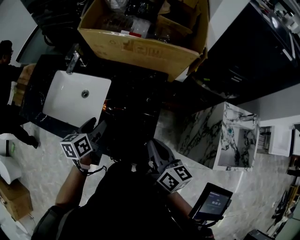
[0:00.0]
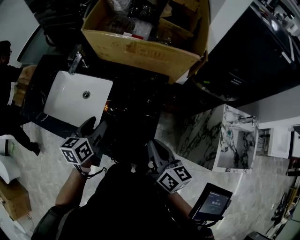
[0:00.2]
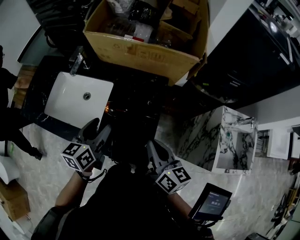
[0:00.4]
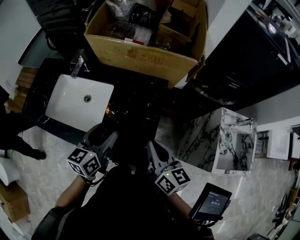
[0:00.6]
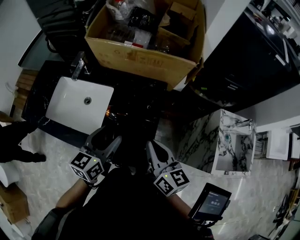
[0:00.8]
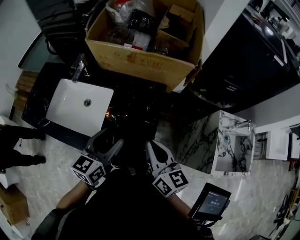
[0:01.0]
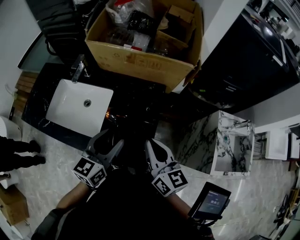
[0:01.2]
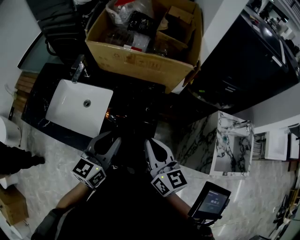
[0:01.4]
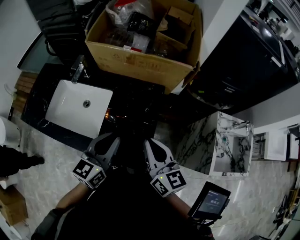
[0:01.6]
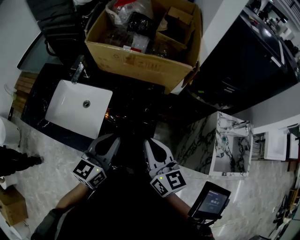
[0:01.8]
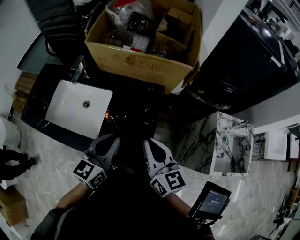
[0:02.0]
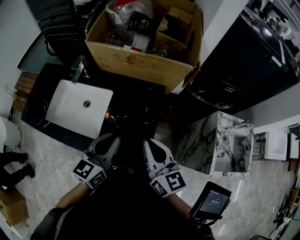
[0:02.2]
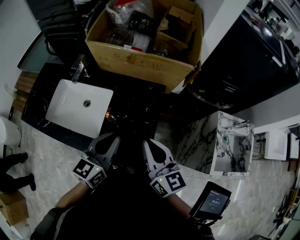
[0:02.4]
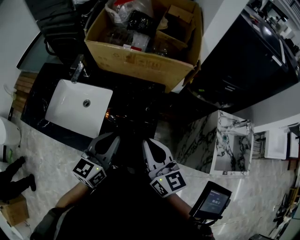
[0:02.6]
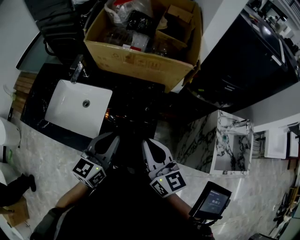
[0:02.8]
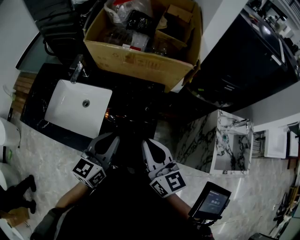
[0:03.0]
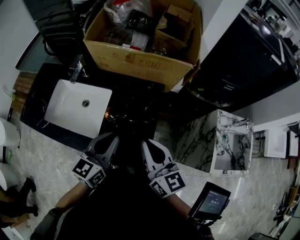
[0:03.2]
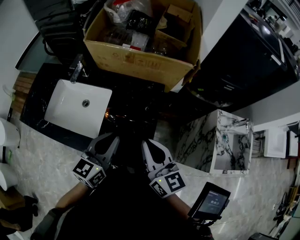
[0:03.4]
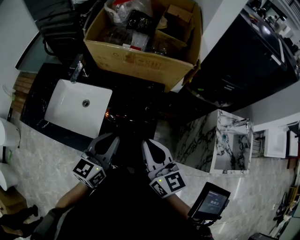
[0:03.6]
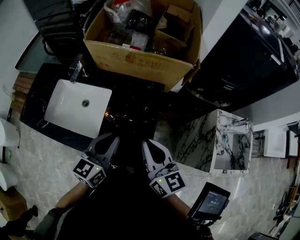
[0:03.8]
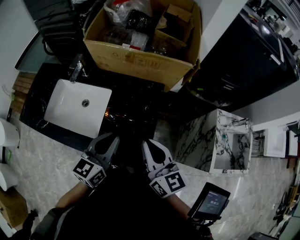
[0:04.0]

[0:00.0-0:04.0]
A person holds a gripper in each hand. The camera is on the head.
0:00.0 to 0:01.4: The right gripper moves upward, roughly 10 cm, and turns by about 20 degrees. Meanwhile the left gripper heads upward and to the right, covering about 15 cm, turns by approximately 30 degrees, and closes its fingers.
0:01.4 to 0:02.6: There are only small adjustments of the grippers.
0:02.6 to 0:04.0: The two grippers keep their place.

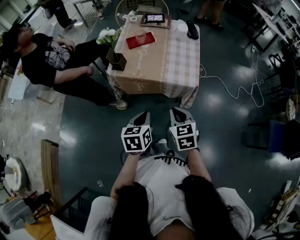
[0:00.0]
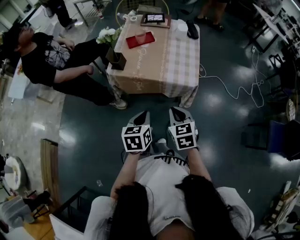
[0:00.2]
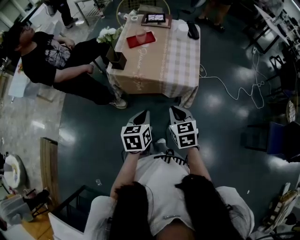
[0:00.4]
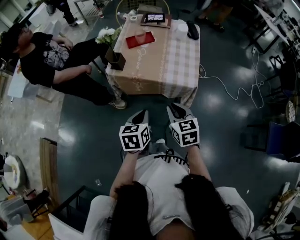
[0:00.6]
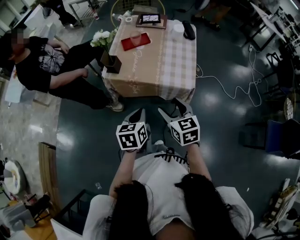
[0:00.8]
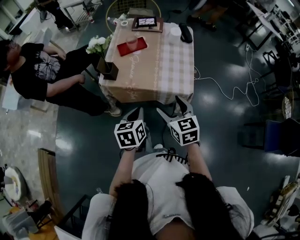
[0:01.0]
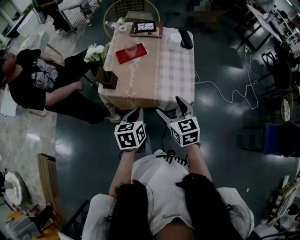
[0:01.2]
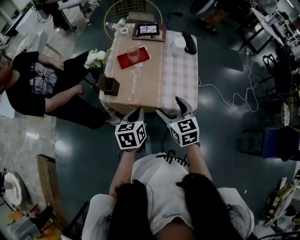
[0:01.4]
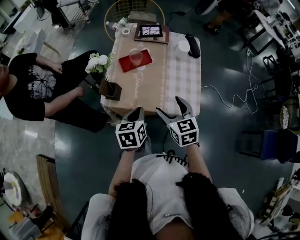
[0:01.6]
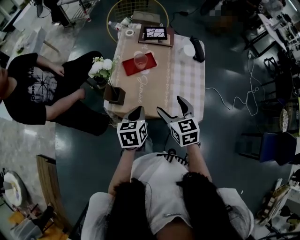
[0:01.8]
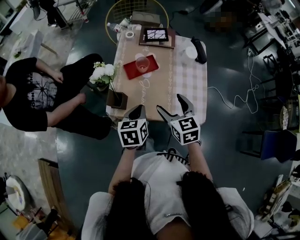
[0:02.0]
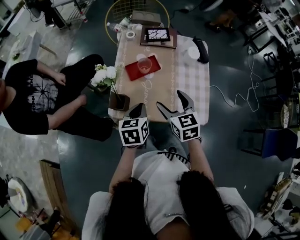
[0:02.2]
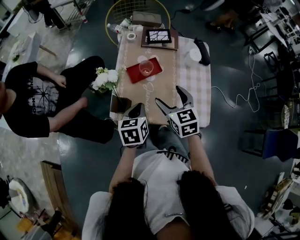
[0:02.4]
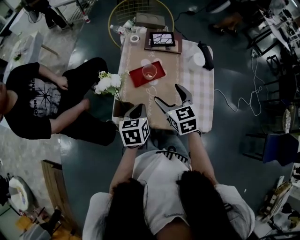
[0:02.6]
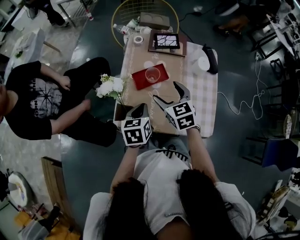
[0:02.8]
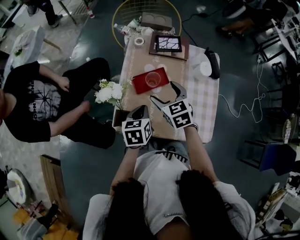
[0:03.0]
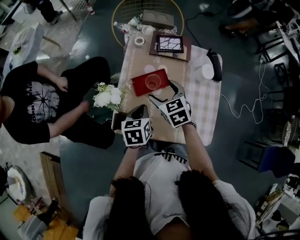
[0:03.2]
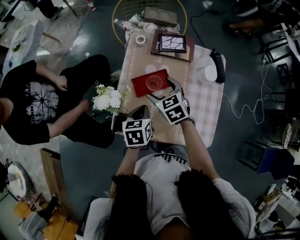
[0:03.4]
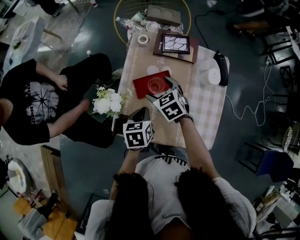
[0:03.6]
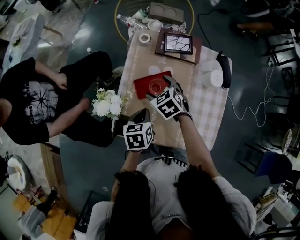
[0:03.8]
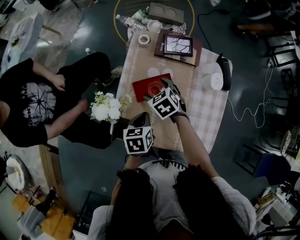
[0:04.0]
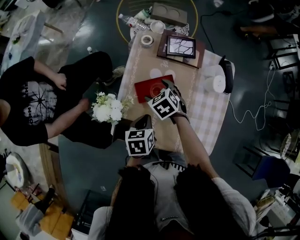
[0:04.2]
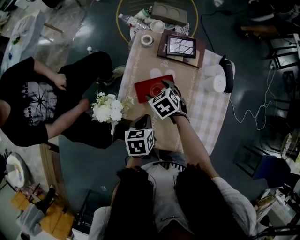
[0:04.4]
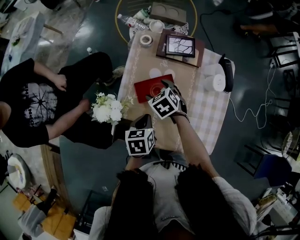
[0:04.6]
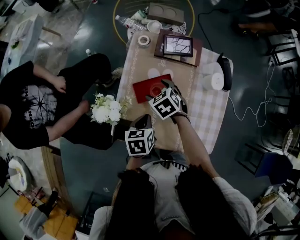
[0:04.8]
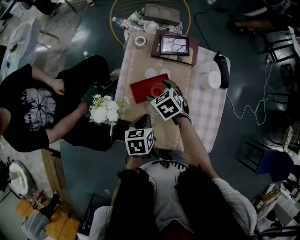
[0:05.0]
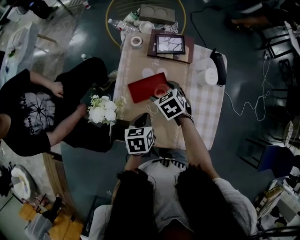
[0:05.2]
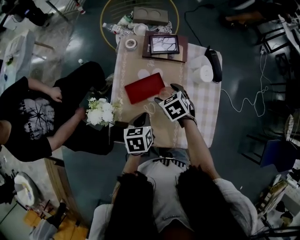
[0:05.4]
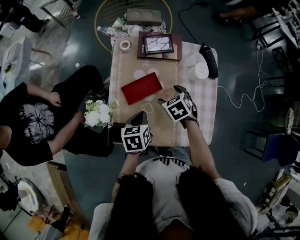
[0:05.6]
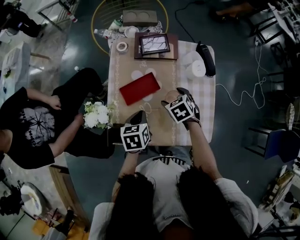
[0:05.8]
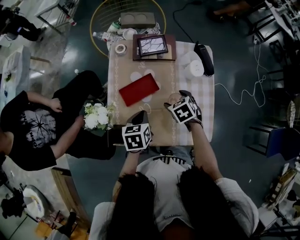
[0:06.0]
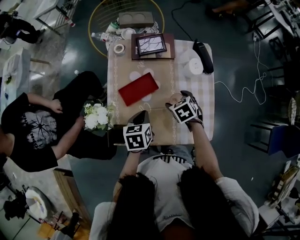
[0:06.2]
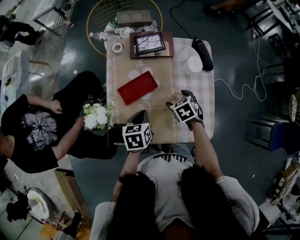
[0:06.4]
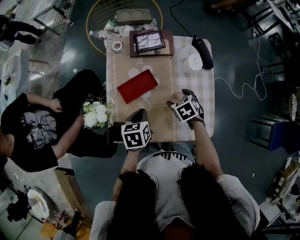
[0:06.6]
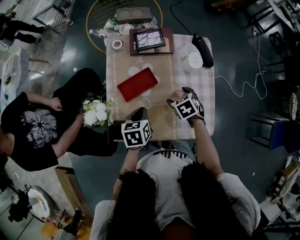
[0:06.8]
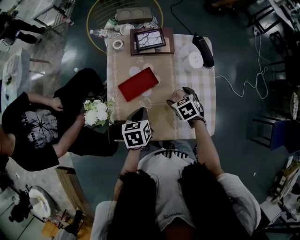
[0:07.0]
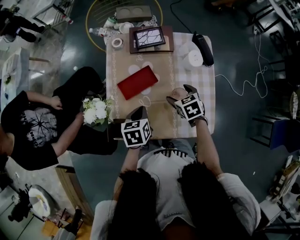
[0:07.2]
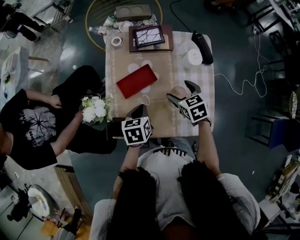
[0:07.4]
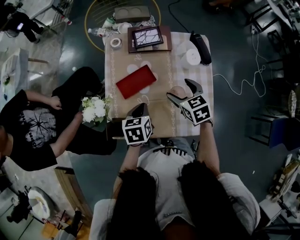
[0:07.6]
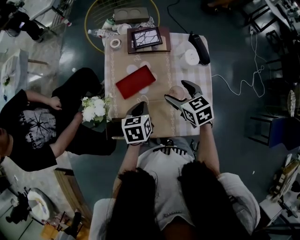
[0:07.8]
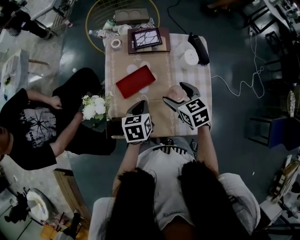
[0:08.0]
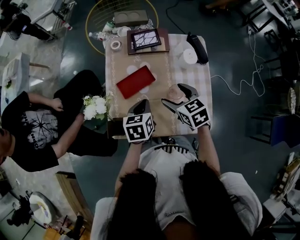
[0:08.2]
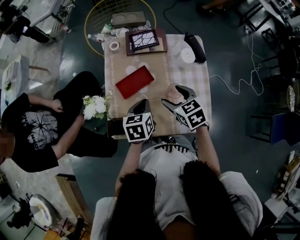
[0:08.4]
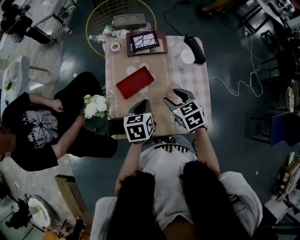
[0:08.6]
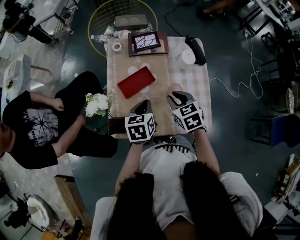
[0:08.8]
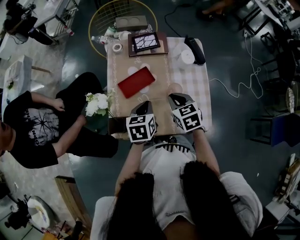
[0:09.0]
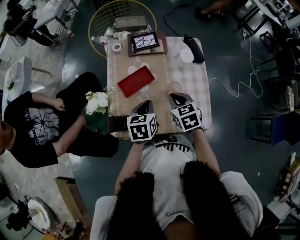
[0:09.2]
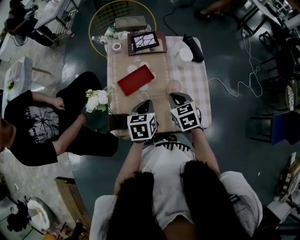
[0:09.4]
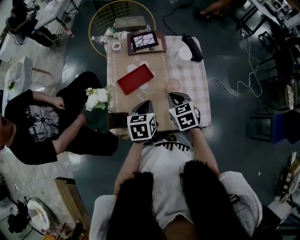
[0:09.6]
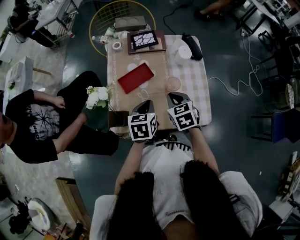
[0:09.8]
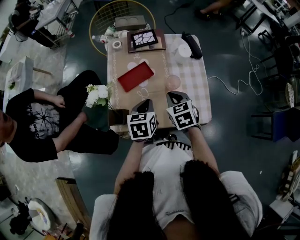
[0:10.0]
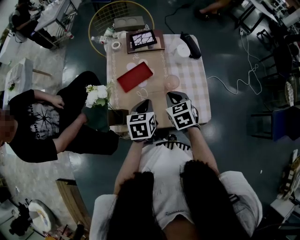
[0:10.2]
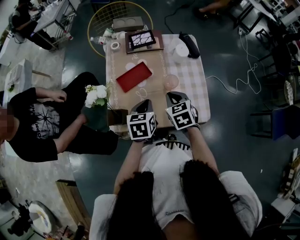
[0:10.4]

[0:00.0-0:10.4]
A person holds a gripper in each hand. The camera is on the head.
0:00.0 to 0:01.4: The grippers both shift forward by about 20 cm. The right gripper opens its fingers.
0:01.4 to 0:03.0: The left gripper travels forward by about 20 cm; the right gripper moves forward and to the left, about 30 cm.
0:03.0 to 0:04.4: The left gripper is displaced downward by approximately 5 cm, while the right gripper is displaced downward and forward by roughly 15 cm, and swivels roughly 30 degrees.
0:04.4 to 0:06.0: The left gripper moves some 5 cm; the right gripper goes about 20 cm to the right and backward.
0:06.0 to 0:07.4: The grippers make only small movements.
0:07.4 to 0:09.0: The right gripper goes approximately 10 cm backward and upward, and closes up. The left gripper goes roughly 5 cm upward.
0:09.0 to 0:10.4: There are only small adjustments of the grippers.

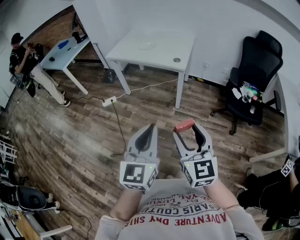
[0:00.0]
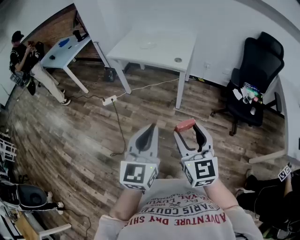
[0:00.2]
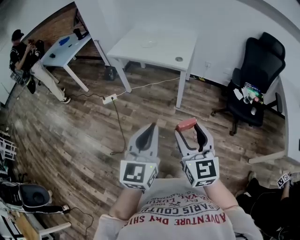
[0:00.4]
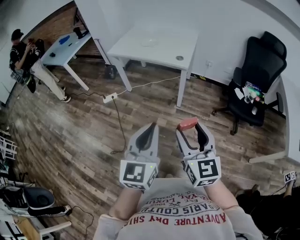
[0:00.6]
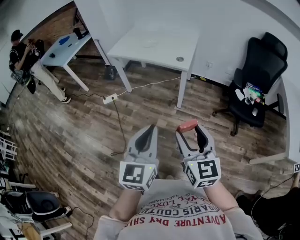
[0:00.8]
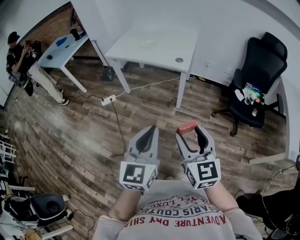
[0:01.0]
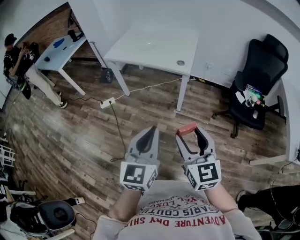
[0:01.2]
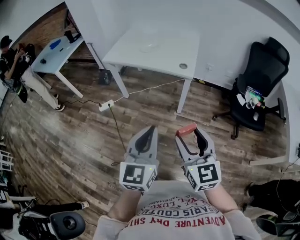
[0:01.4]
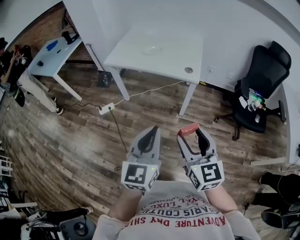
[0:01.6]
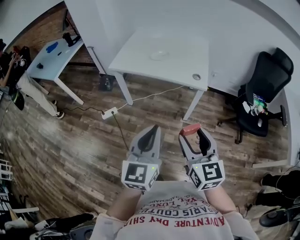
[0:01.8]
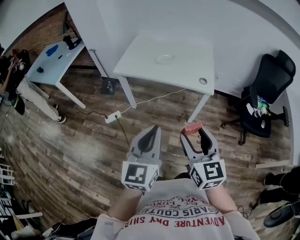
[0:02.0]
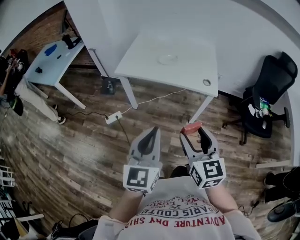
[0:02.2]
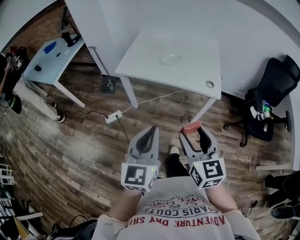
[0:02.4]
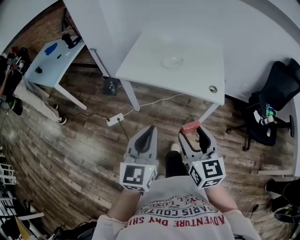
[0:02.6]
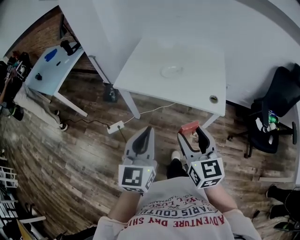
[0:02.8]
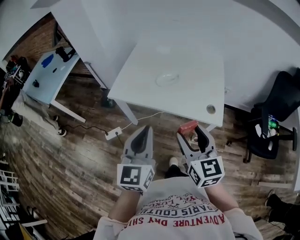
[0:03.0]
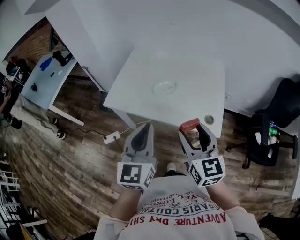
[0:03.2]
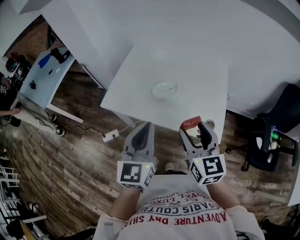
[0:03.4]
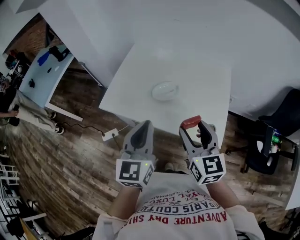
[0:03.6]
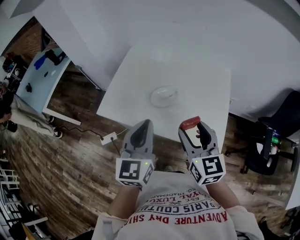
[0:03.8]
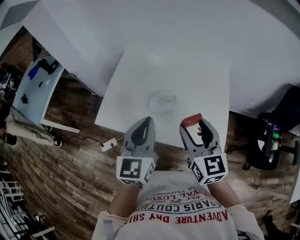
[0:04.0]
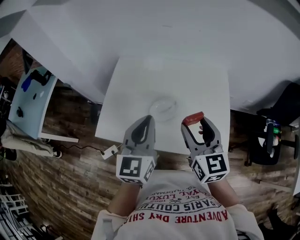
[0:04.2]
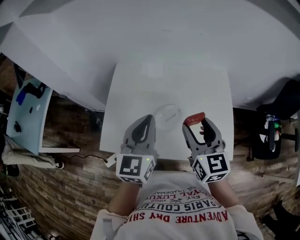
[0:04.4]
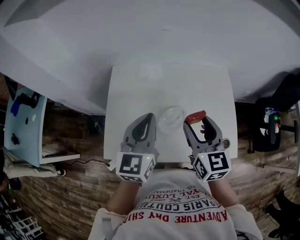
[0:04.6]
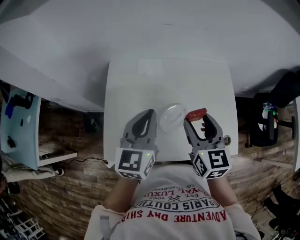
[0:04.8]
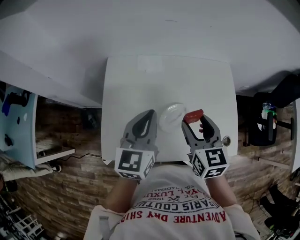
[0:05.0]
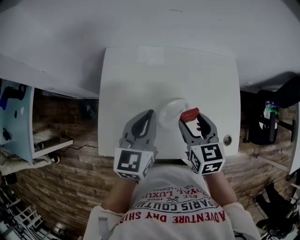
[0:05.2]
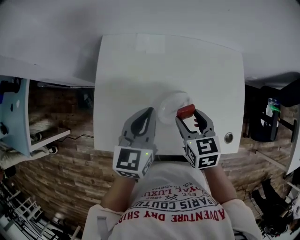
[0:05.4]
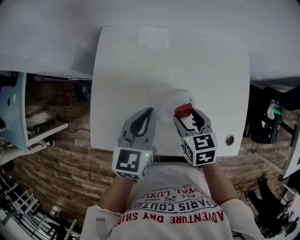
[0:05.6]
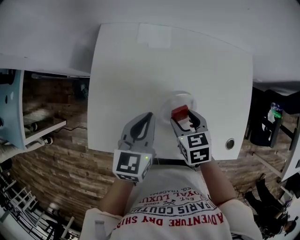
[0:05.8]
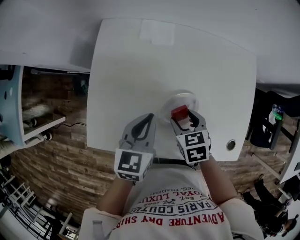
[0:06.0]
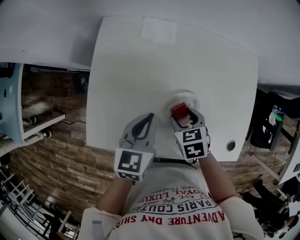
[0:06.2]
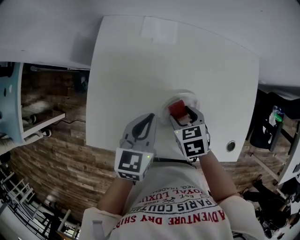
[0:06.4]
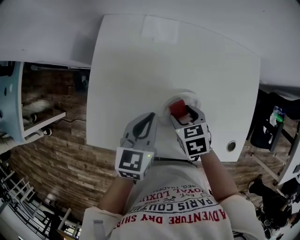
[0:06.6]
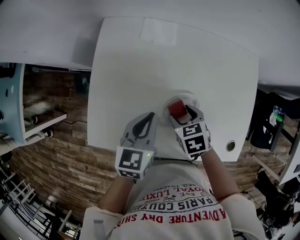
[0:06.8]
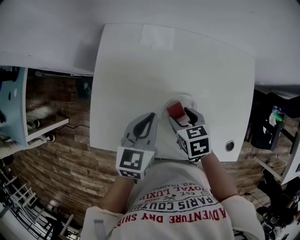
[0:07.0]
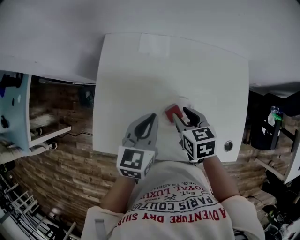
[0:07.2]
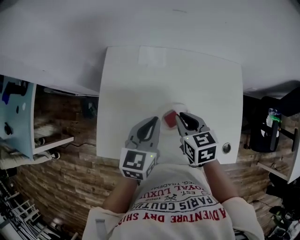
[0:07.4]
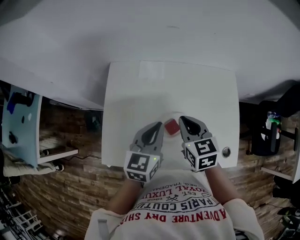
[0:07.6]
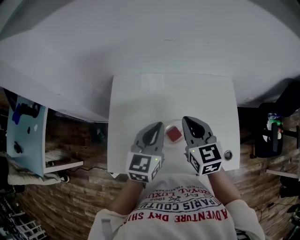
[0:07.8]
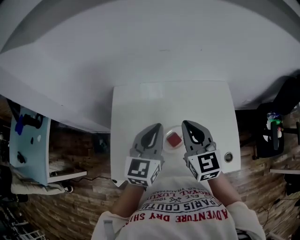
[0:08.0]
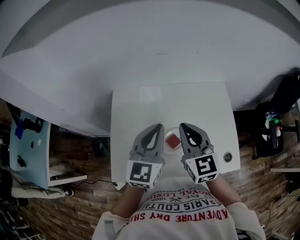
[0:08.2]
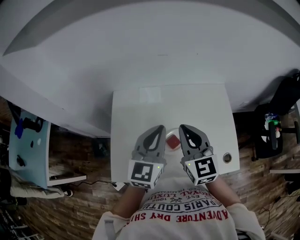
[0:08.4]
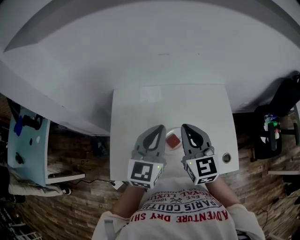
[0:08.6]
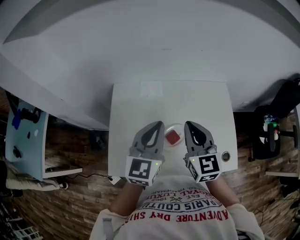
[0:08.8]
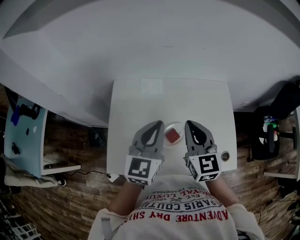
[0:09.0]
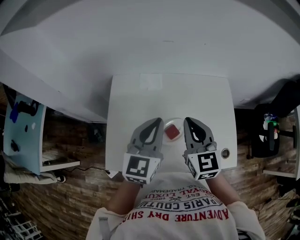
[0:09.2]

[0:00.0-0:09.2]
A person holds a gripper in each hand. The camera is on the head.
0:00.0 to 0:01.6: The two grippers go roughly 20 cm forward and to the left.
0:01.6 to 0:03.0: Both grippers move forward, approximately 35 cm.
0:03.0 to 0:04.6: The grippers both shift forward by some 40 cm.
0:04.6 to 0:06.2: Both grippers travel together downward, some 25 cm. The right gripper tilts its fingers roughly 40 degrees downward. The left gripper changes its angle by roughly 30 degrees.
0:06.2 to 0:07.6: The right gripper moves upward, approximately 15 cm, changes its angle by about 30 degrees, and closes up. Meanwhile the left gripper shifts approximately 10 cm upward.
0:07.6 to 0:09.2: The two grippers go some 10 cm upward. The right gripper swivels approximately 20 degrees.
